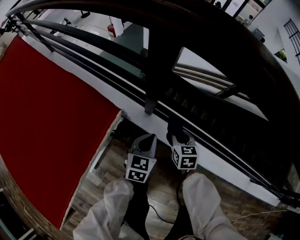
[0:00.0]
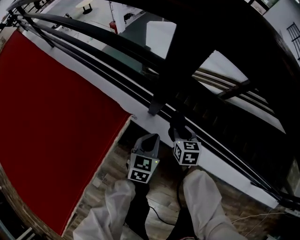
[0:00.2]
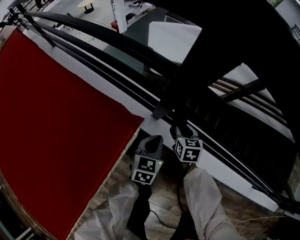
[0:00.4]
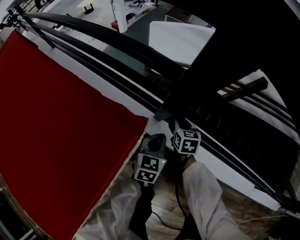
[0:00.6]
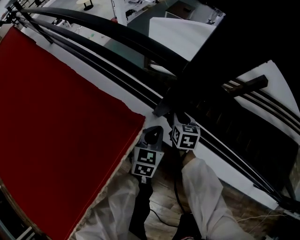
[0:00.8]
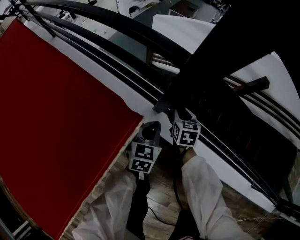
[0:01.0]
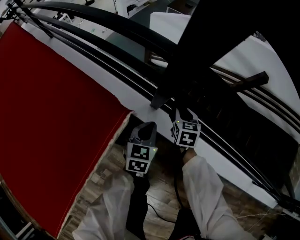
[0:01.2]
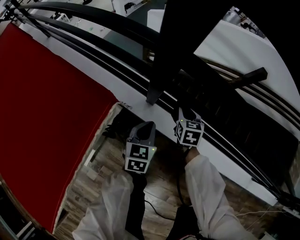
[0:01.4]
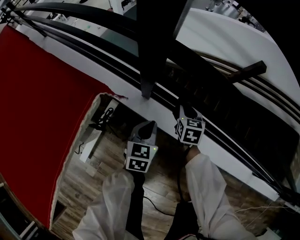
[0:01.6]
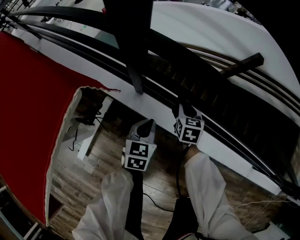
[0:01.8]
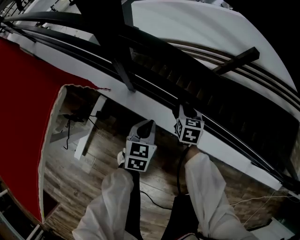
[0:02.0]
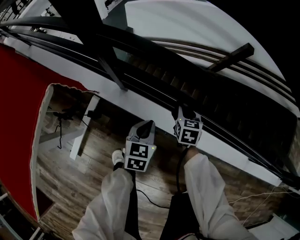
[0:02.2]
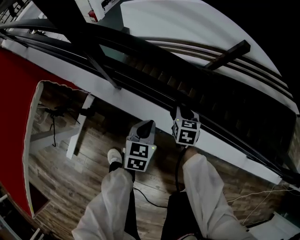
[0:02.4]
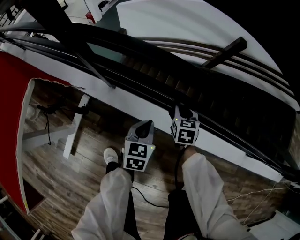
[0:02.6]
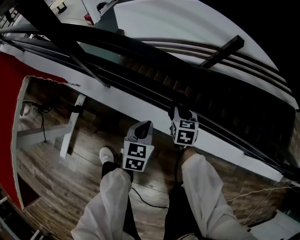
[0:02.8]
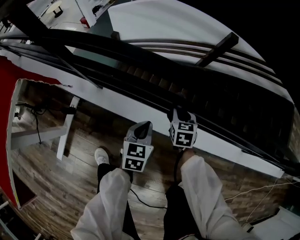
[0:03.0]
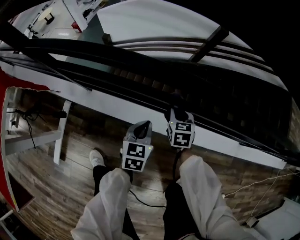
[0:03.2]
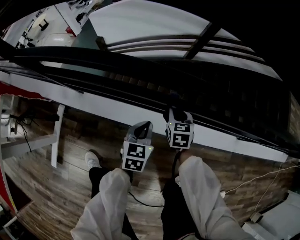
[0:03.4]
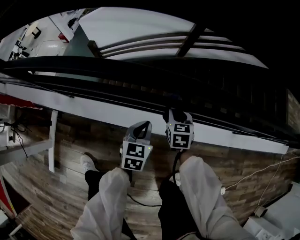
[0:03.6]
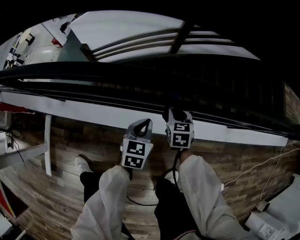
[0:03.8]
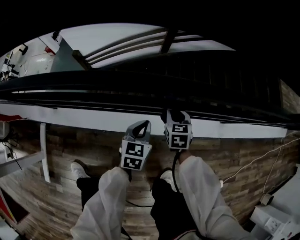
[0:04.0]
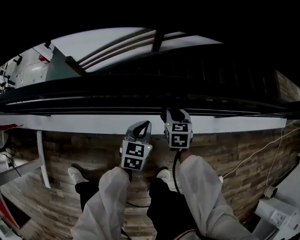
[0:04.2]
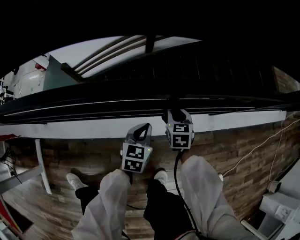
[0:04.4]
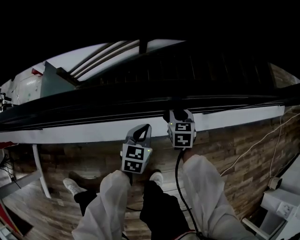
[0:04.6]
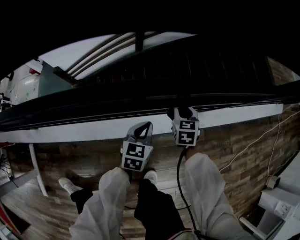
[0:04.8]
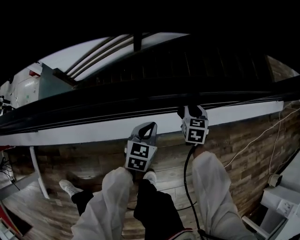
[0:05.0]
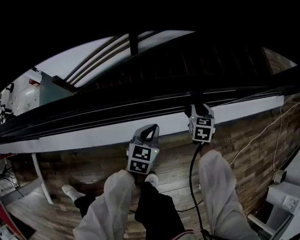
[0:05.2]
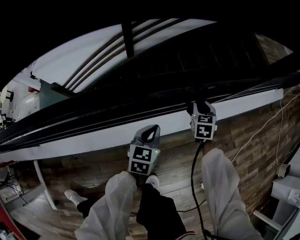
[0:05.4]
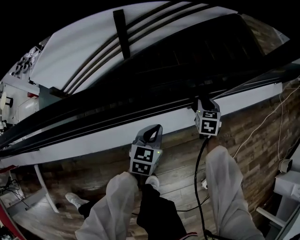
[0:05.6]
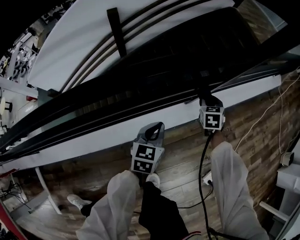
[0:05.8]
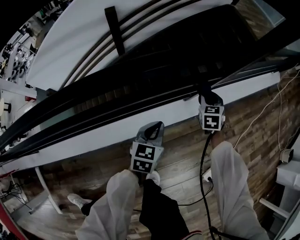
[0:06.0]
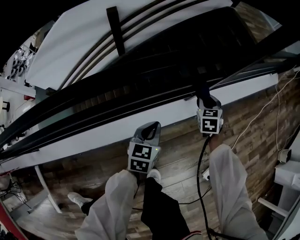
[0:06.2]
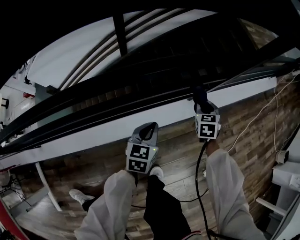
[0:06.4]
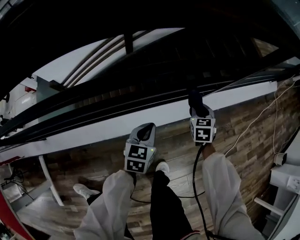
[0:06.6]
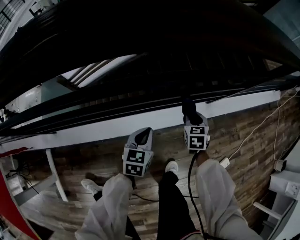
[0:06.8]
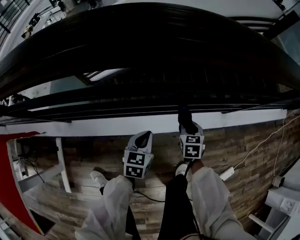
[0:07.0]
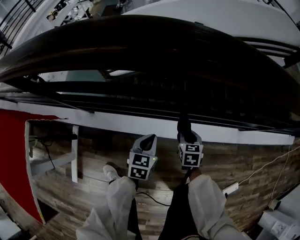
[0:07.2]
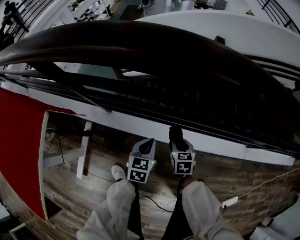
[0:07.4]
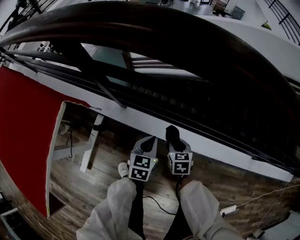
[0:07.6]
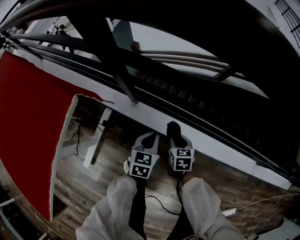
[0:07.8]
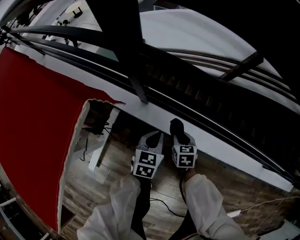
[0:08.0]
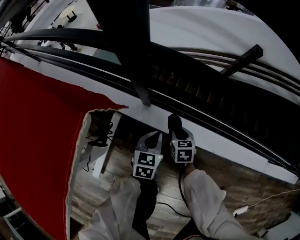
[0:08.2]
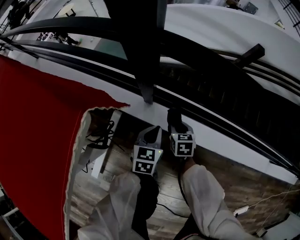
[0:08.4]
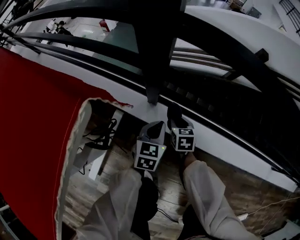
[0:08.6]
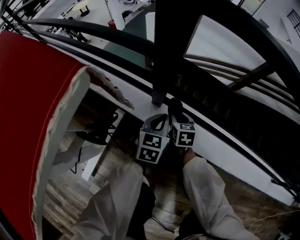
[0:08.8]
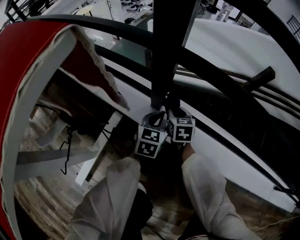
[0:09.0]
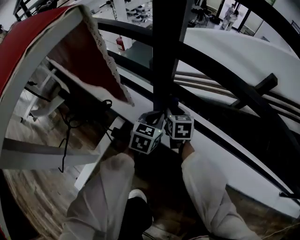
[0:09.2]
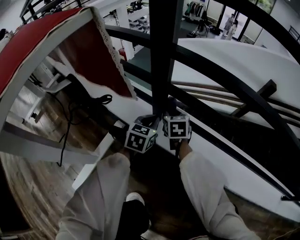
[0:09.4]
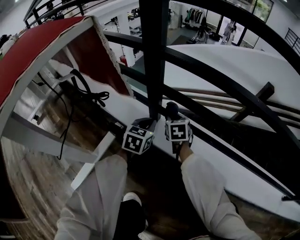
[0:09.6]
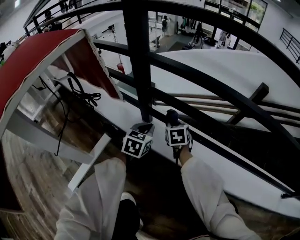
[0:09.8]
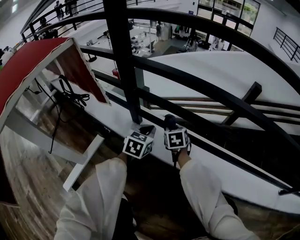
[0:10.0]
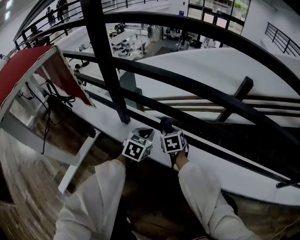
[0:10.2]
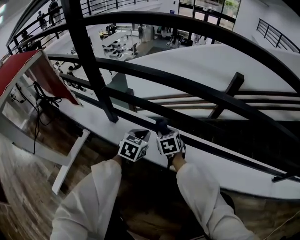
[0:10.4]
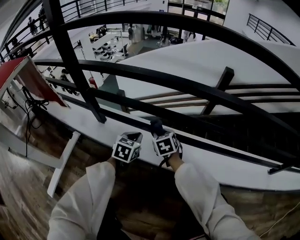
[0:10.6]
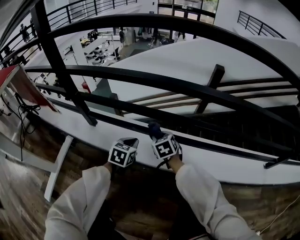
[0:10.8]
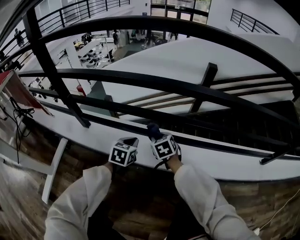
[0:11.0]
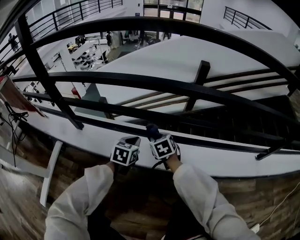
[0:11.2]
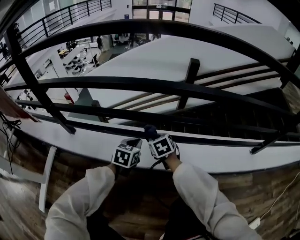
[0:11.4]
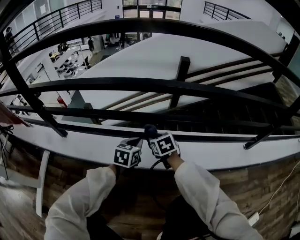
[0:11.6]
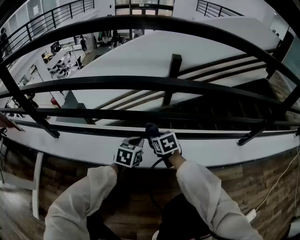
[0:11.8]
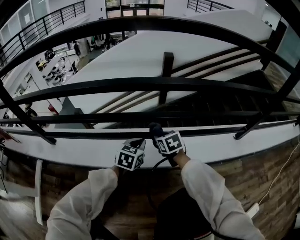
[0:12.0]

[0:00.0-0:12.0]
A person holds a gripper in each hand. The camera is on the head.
0:00.0 to 0:01.6: The left gripper travels downward by roughly 10 cm. Meanwhile the right gripper moves downward and forward, some 10 cm.
0:01.6 to 0:03.0: Both grippers travel together to the right, approximately 30 cm.
0:03.0 to 0:04.4: Both grippers are carried to the right, some 40 cm. The left gripper turns by about 30 degrees.
0:04.4 to 0:06.0: The left gripper goes roughly 25 cm to the right, while the right gripper goes about 35 cm to the right and forward, and swivels roughly 20 degrees.
0:06.0 to 0:07.6: Both grippers are carried about 80 cm. The left gripper swivels some 40 degrees, while the right gripper swivels some 40 degrees.
0:07.6 to 0:09.0: The left gripper is displaced downward, to the left and forward by some 35 cm, while the right gripper heads to the left, downward and forward, covering some 40 cm.
0:09.0 to 0:10.4: The right gripper heads to the right and backward, covering roughly 25 cm; the left gripper moves to the right, roughly 20 cm.
0:10.4 to 0:12.0: The two grippers go approximately 40 cm to the right. The left gripper rotates roughly 20 degrees; the right gripper turns by approximately 20 degrees.

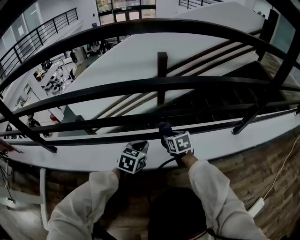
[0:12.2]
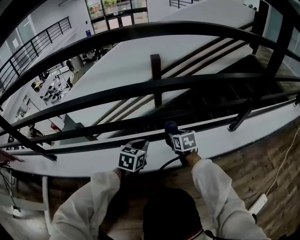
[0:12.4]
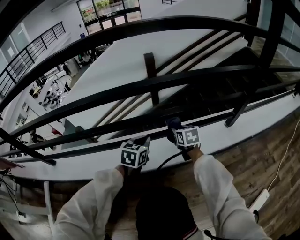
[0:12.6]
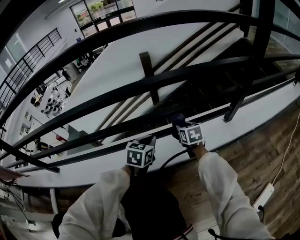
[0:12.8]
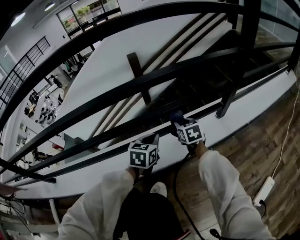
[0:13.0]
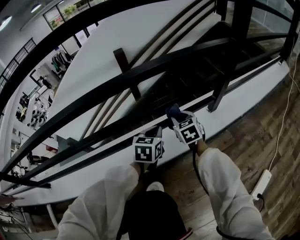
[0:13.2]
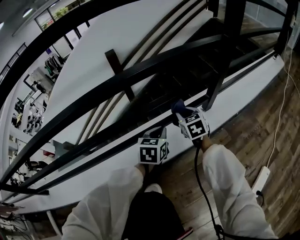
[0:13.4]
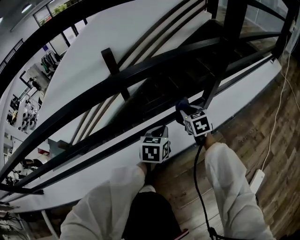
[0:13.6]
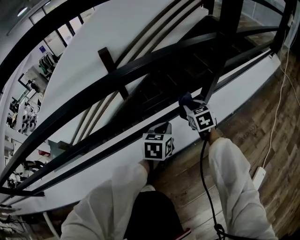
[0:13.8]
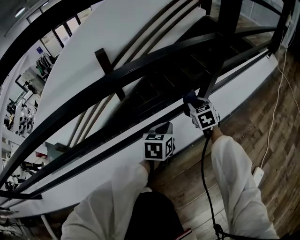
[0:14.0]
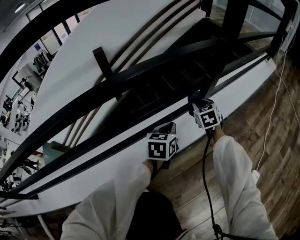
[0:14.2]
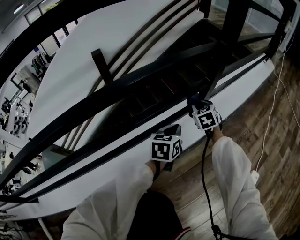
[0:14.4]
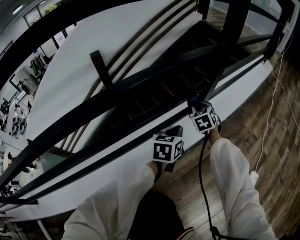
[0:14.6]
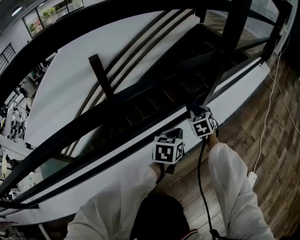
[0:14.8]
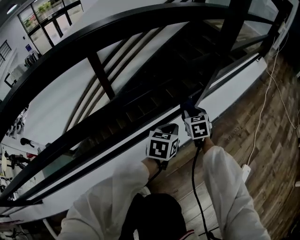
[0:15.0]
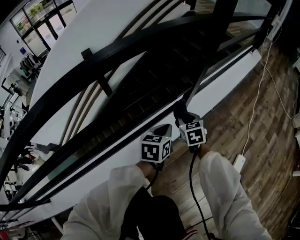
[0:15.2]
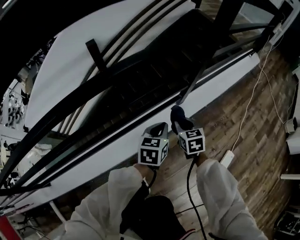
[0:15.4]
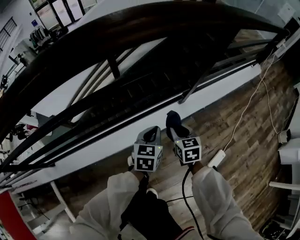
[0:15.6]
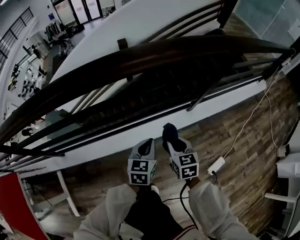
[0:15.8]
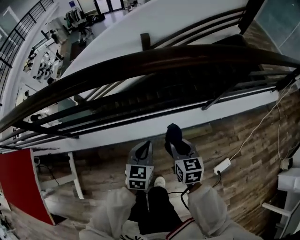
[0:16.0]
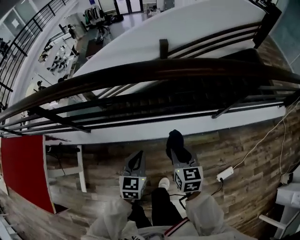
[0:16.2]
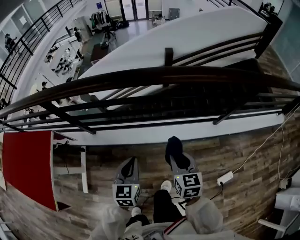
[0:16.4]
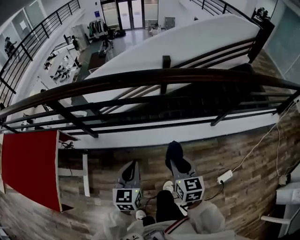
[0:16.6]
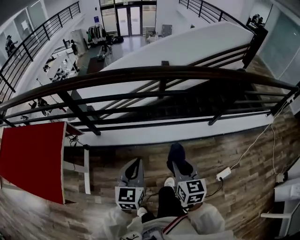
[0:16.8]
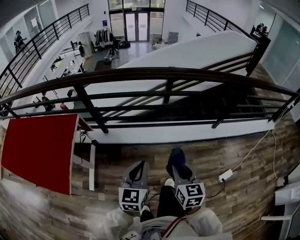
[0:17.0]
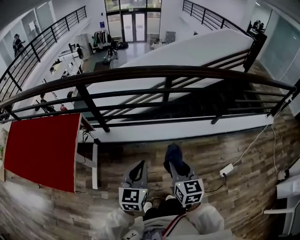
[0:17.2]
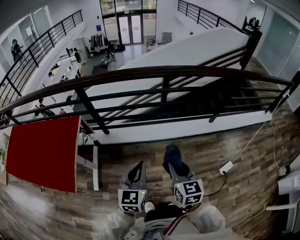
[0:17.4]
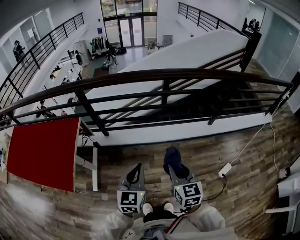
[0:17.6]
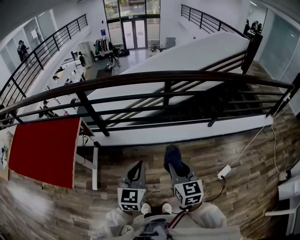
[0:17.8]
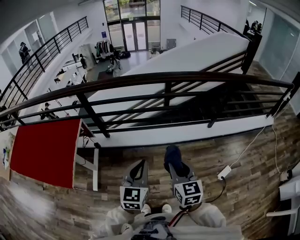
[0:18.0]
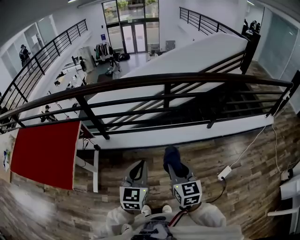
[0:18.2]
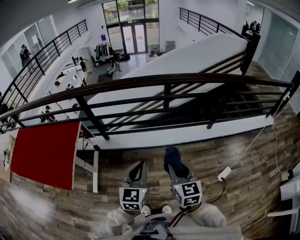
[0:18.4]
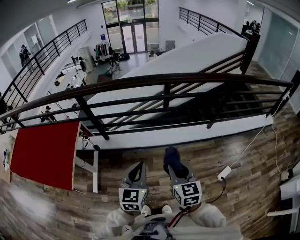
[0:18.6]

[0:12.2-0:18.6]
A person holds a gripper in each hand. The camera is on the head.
0:12.2 to 0:13.8: Both grippers move to the right, about 35 cm. The right gripper changes its angle by roughly 30 degrees.
0:13.8 to 0:15.4: The left gripper goes approximately 20 cm upward, while the right gripper travels upward and backward by approximately 20 cm.
0:15.4 to 0:17.0: The two grippers travel together, roughly 70 cm. The left gripper changes its angle by some 40 degrees. The right gripper turns by some 30 degrees.
0:17.0 to 0:18.6: The left gripper travels to the right, backward and upward by roughly 15 cm, while the right gripper is displaced upward, backward and to the right by about 10 cm.

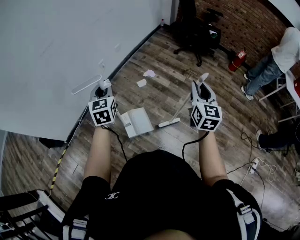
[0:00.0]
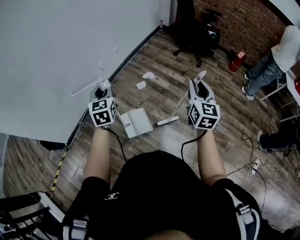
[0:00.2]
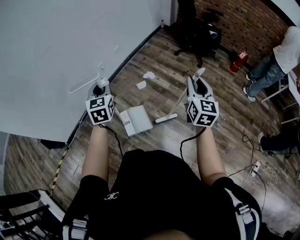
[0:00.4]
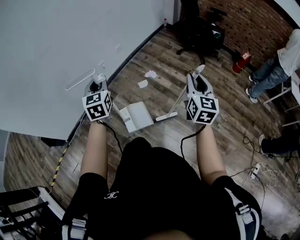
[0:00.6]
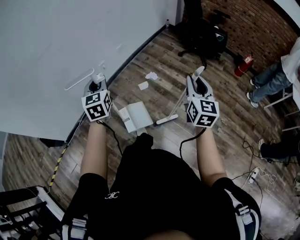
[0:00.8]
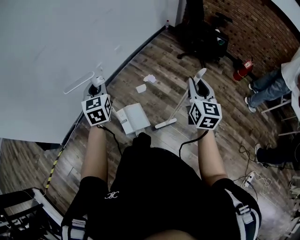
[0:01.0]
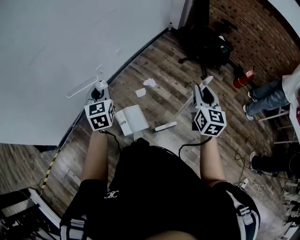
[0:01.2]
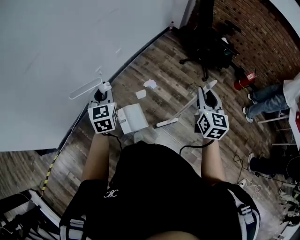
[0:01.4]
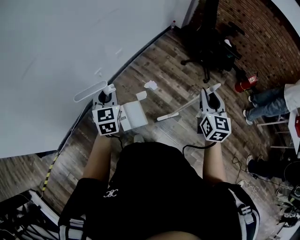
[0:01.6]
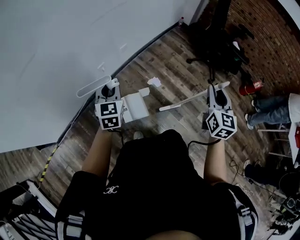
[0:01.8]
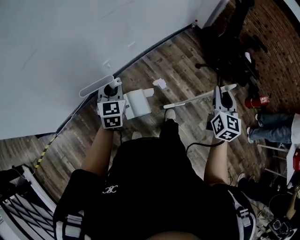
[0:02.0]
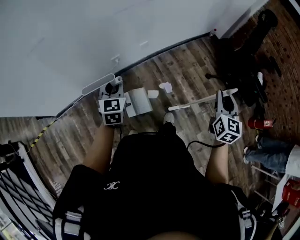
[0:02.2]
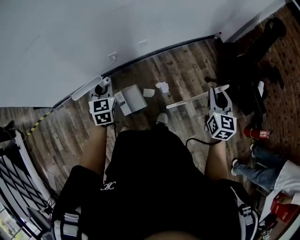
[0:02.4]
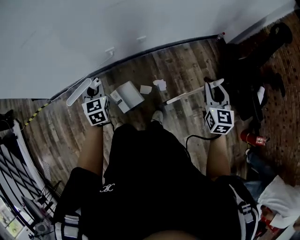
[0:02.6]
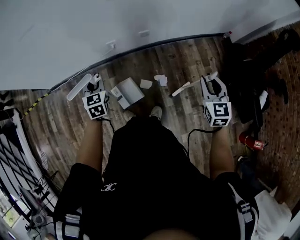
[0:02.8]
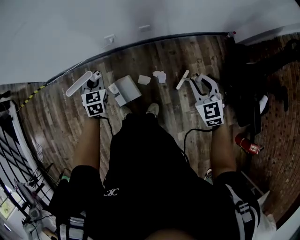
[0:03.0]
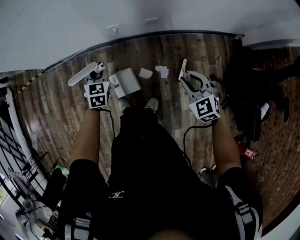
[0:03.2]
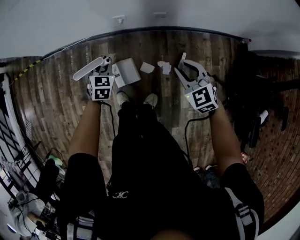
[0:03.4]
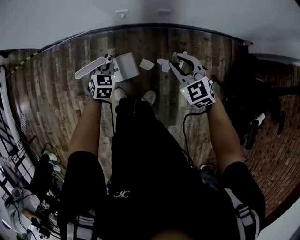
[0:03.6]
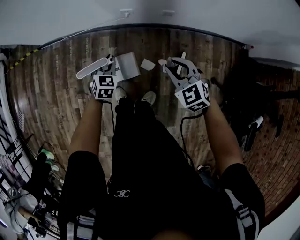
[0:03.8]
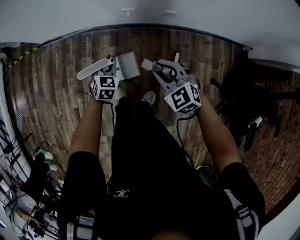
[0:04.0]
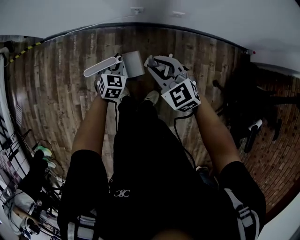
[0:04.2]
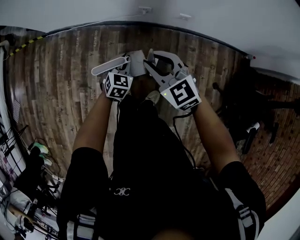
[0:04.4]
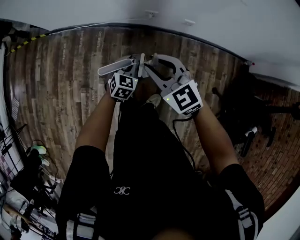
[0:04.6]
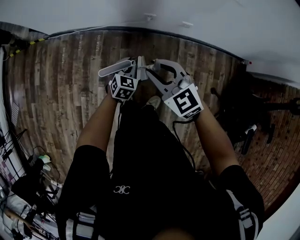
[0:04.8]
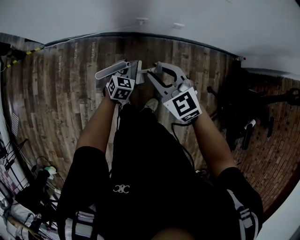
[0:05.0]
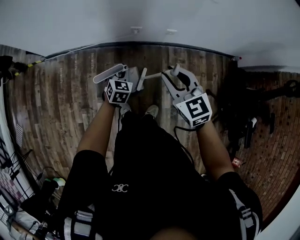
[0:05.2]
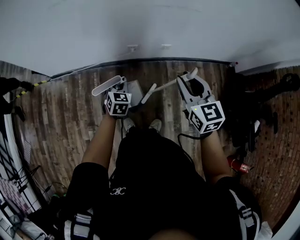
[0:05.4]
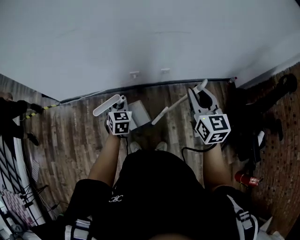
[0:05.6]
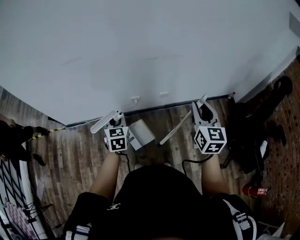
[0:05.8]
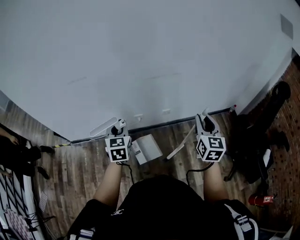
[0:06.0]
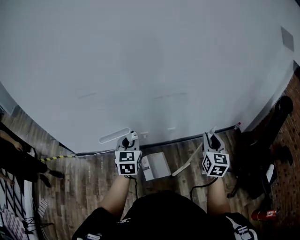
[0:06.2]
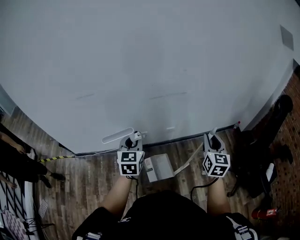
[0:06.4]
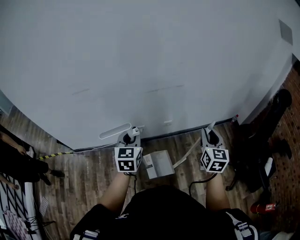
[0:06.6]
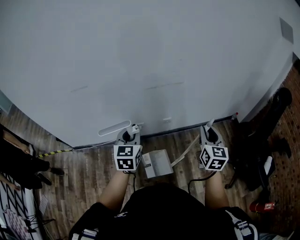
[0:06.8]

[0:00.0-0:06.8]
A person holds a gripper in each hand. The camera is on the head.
0:00.0 to 0:01.4: The two grippers go about 25 cm forward.
0:01.4 to 0:02.8: The right gripper shifts by approximately 40 cm, and swivels some 50 degrees, while the left gripper changes place by about 20 cm, and rotates about 40 degrees.
0:02.8 to 0:04.0: The right gripper is displaced to the left, downward and forward by about 30 cm, and swivels roughly 50 degrees. Meanwhile the left gripper heads downward, covering about 15 cm.
0:04.0 to 0:05.4: The right gripper moves upward, roughly 20 cm, and rotates some 40 degrees. Meanwhile the left gripper shifts about 10 cm upward.
0:05.4 to 0:06.8: The left gripper travels upward by approximately 25 cm, and turns by approximately 20 degrees; the right gripper moves to the right, some 20 cm, and changes its angle by roughly 30 degrees.
